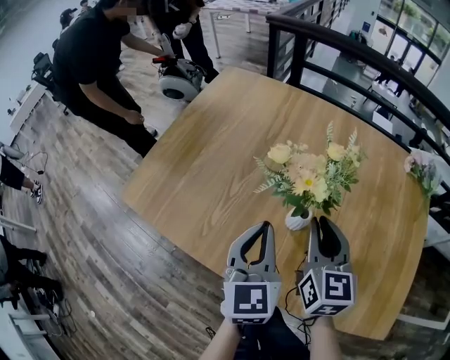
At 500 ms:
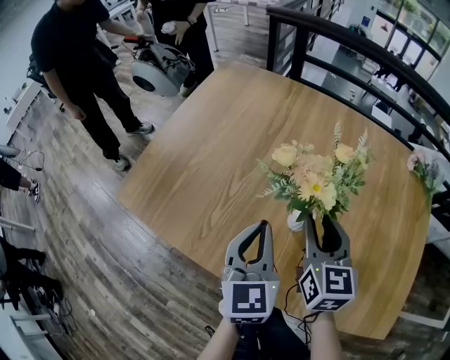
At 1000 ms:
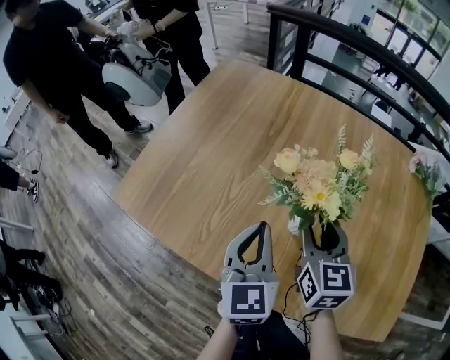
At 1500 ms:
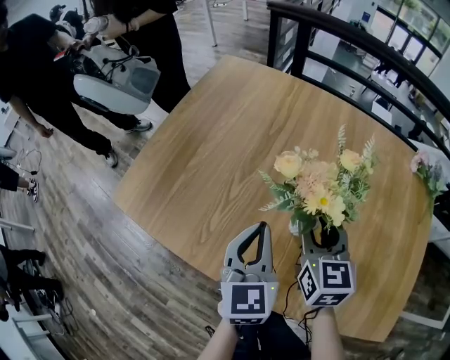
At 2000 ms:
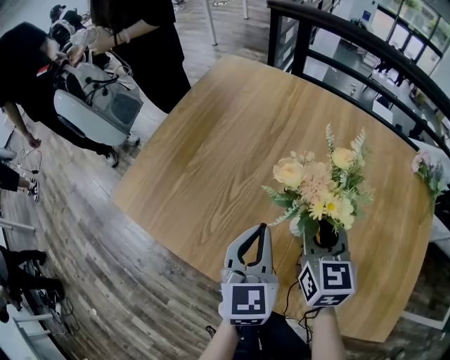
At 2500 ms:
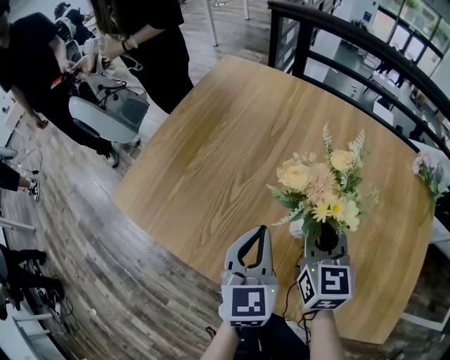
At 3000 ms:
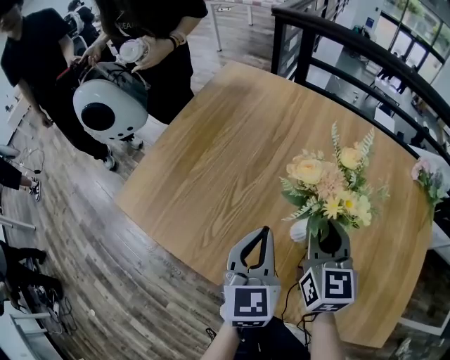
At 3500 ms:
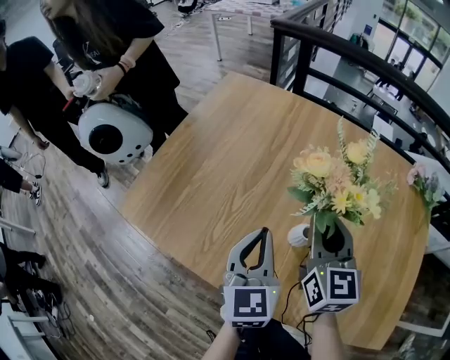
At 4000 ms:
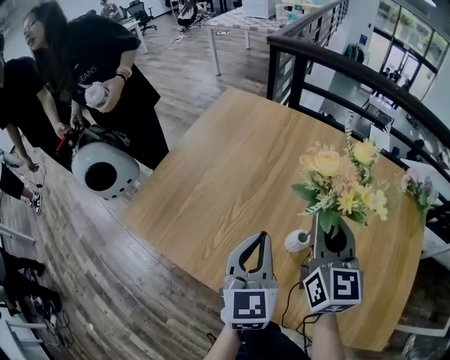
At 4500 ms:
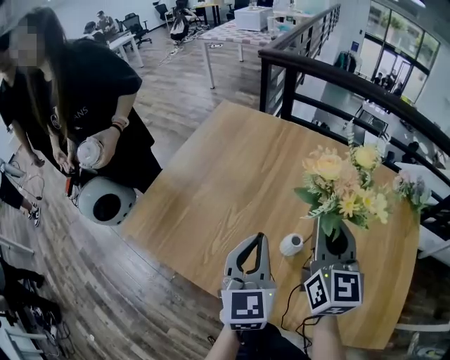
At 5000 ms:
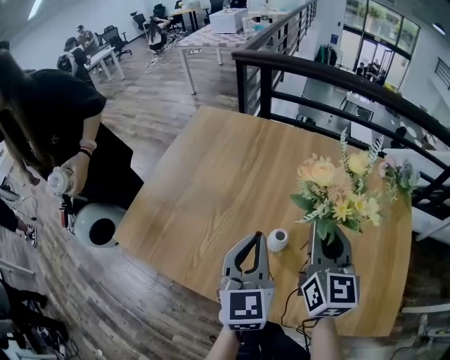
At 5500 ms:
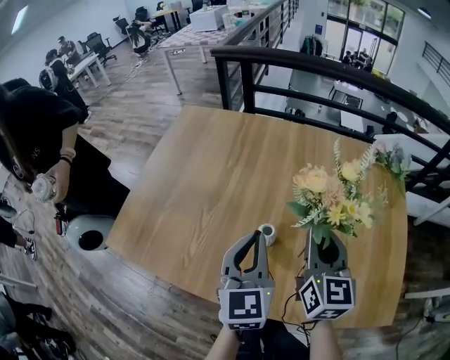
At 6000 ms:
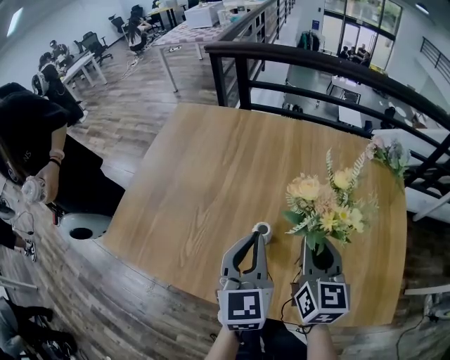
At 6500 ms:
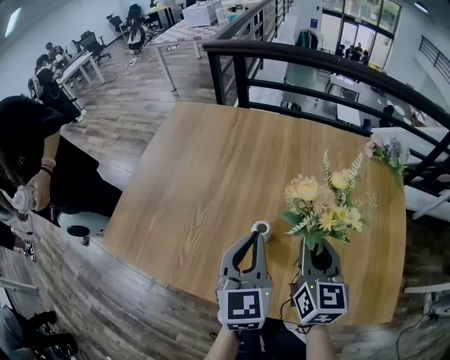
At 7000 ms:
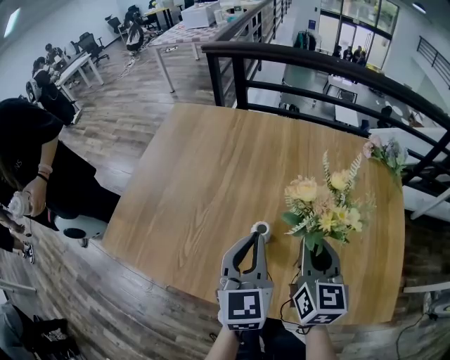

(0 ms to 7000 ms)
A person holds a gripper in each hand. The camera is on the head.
0 ms - 2000 ms: The right gripper moves roughly 5 cm.
2000 ms - 3500 ms: The right gripper heads upward, covering some 10 cm.
3500 ms - 5000 ms: The left gripper heads upward, covering about 5 cm. Meanwhile the right gripper moves to the right, roughly 5 cm.
5000 ms - 7000 ms: The right gripper heads downward, covering some 5 cm; the left gripper moves some 5 cm.

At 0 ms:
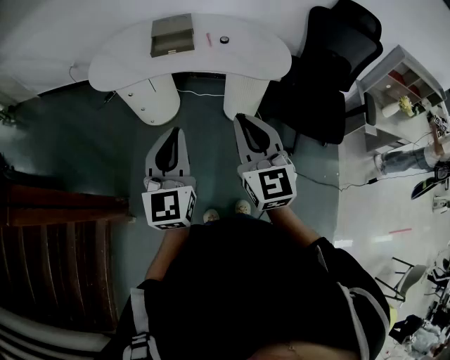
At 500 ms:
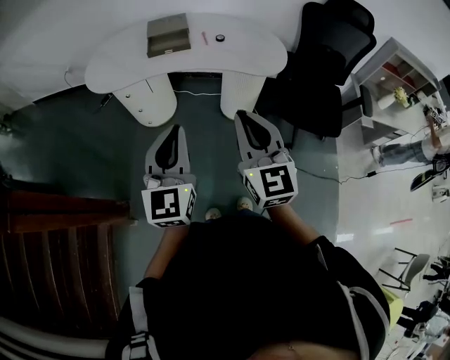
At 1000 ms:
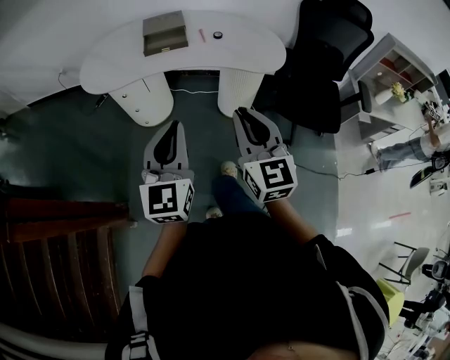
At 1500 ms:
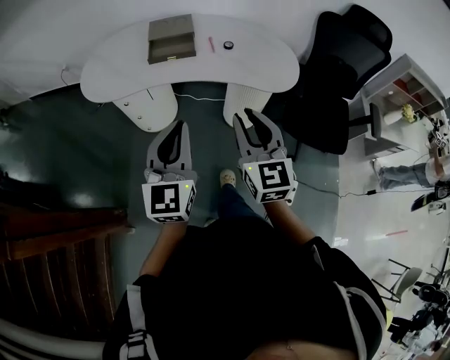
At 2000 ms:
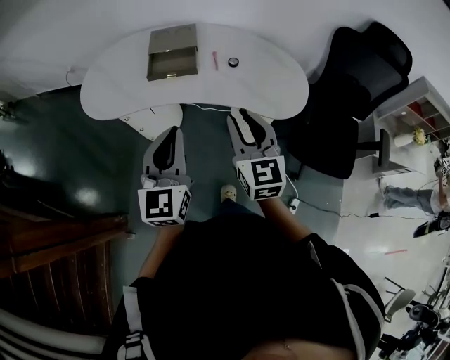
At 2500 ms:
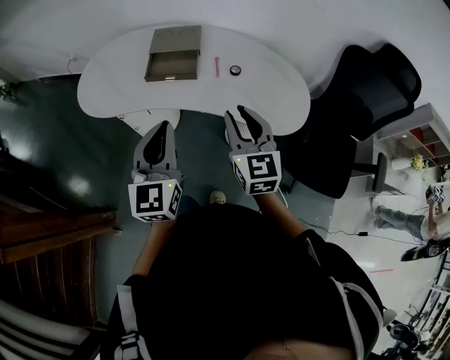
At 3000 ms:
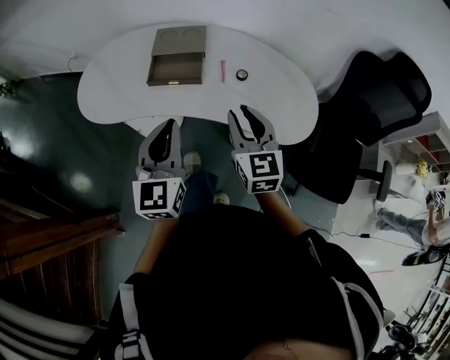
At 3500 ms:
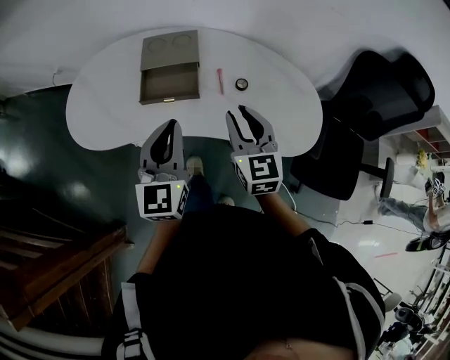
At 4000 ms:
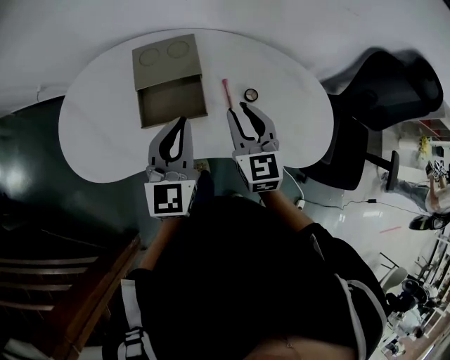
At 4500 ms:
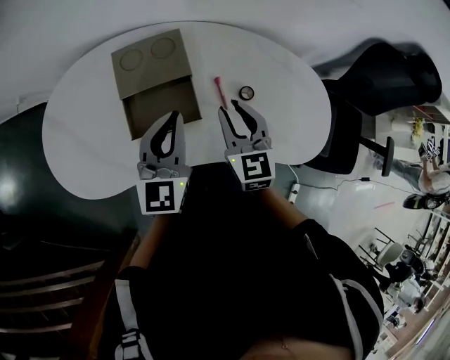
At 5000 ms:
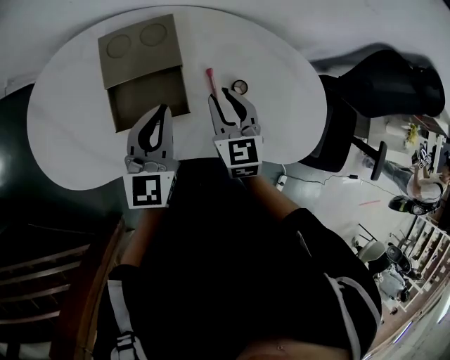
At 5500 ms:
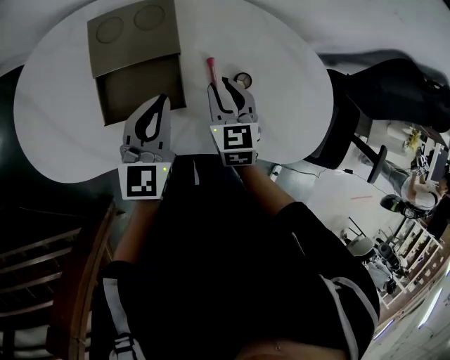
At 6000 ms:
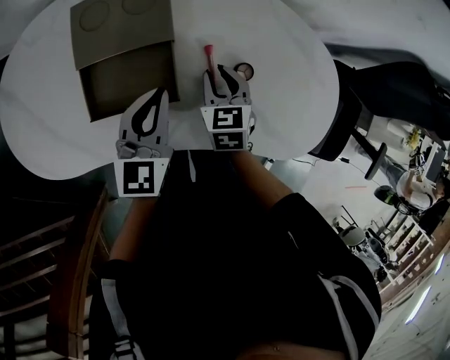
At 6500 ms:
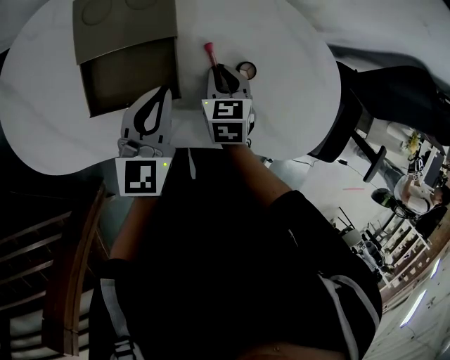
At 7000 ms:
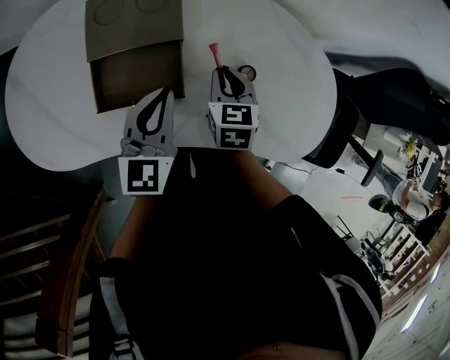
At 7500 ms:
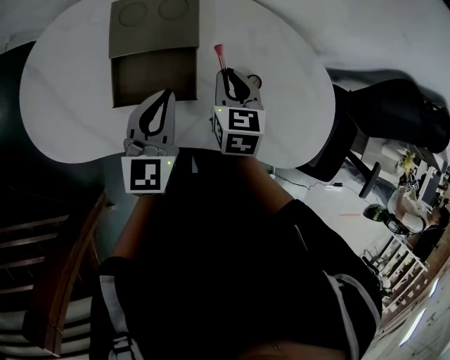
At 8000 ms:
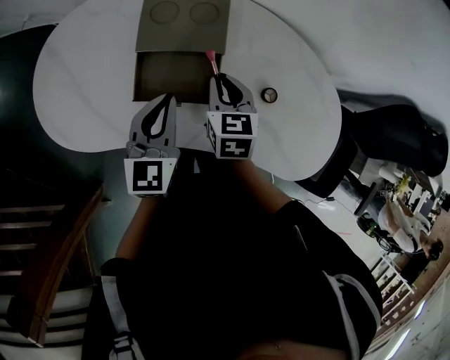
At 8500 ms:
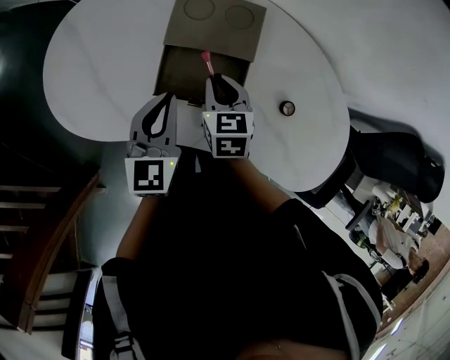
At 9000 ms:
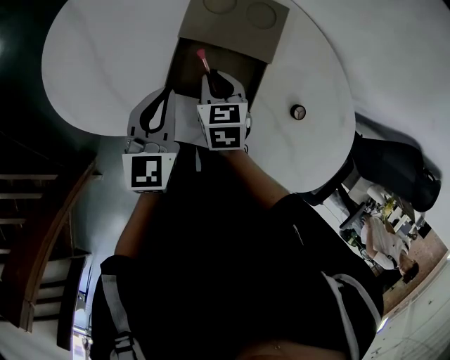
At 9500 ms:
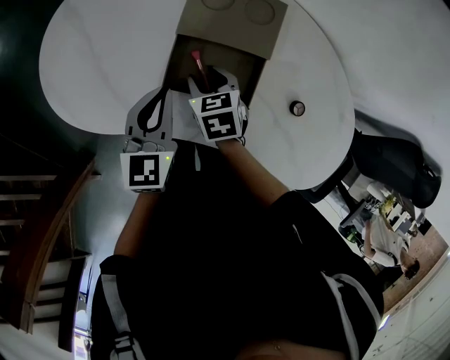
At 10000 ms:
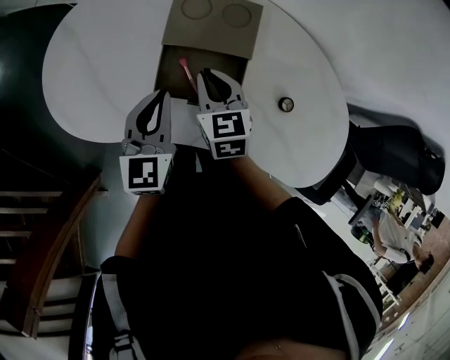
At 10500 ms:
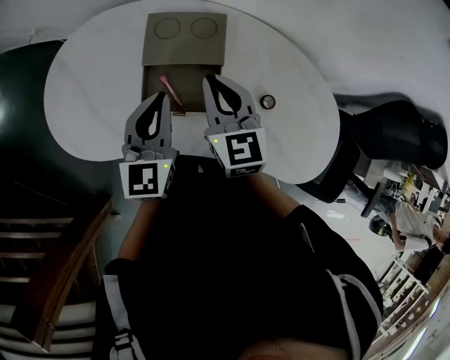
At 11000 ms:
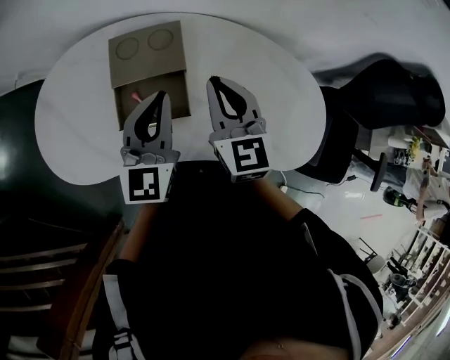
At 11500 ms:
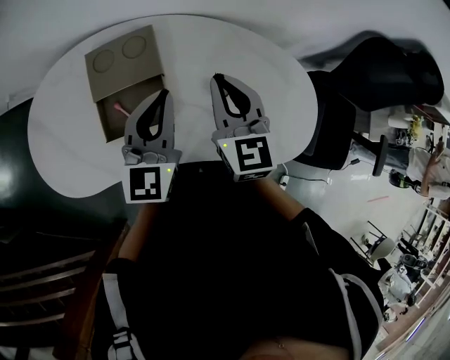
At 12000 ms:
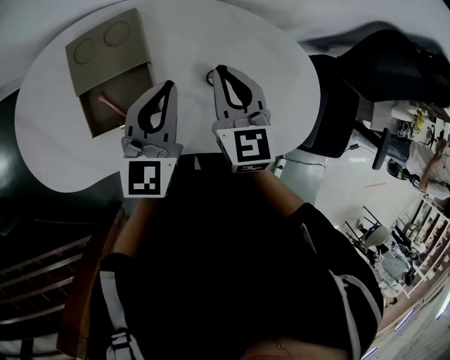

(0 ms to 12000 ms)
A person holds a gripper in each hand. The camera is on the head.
0 ms - 2000 ms: Both grippers move forward, about 25 cm. The right gripper opens up.
2000 ms - 4000 ms: The two grippers go some 30 cm forward.
4000 ms - 6000 ms: Both grippers travel together downward and forward, some 20 cm. The right gripper tips its fingers downward by about 30 degrees.
6000 ms - 8000 ms: Both grippers travel together to the left and upward, some 10 cm.
8000 ms - 10000 ms: Both grippers travel together to the left, roughly 10 cm. The right gripper opens and closes again.
10000 ms - 12000 ms: The left gripper shifts by roughly 25 cm, and turns by approximately 30 degrees; the right gripper changes place by roughly 30 cm, and turns by roughly 30 degrees.

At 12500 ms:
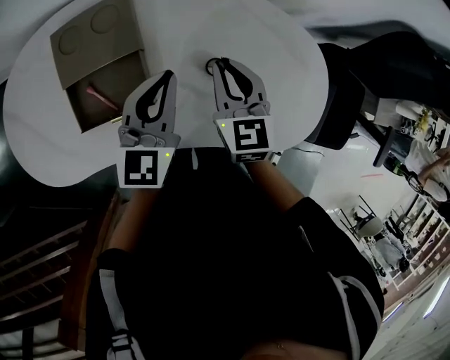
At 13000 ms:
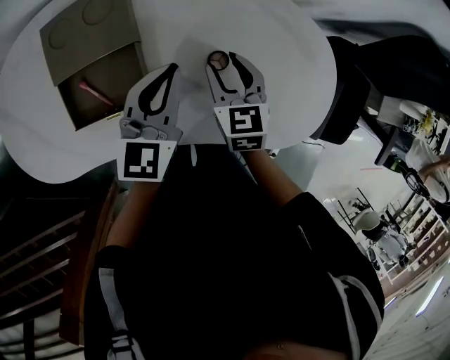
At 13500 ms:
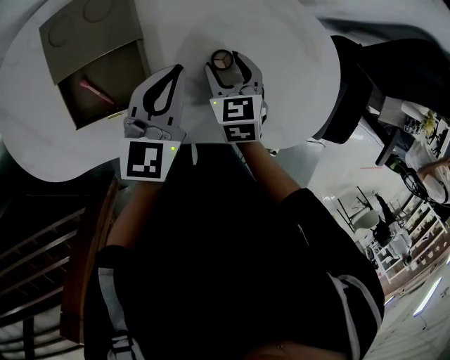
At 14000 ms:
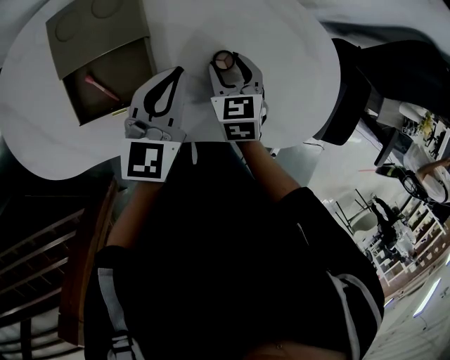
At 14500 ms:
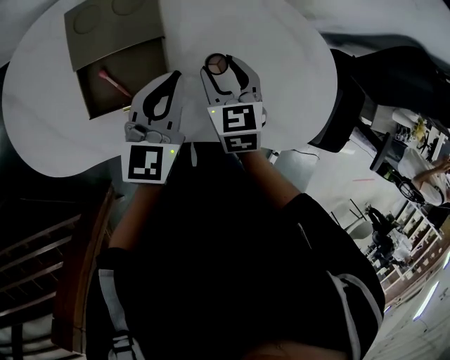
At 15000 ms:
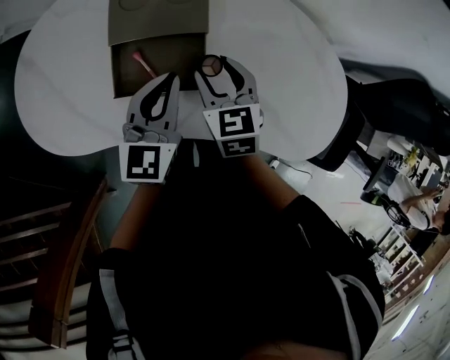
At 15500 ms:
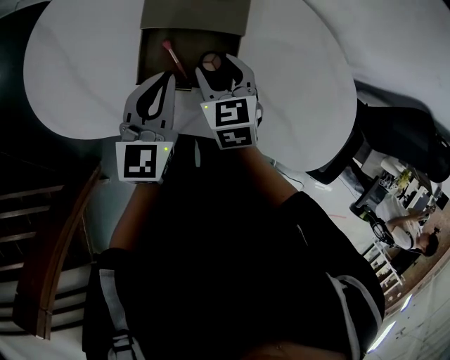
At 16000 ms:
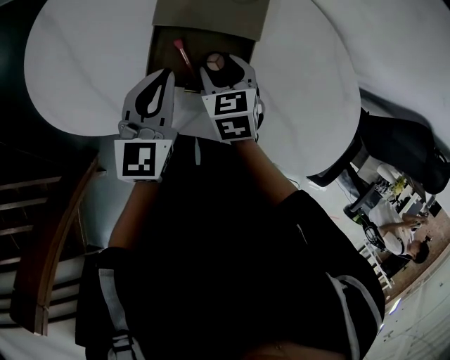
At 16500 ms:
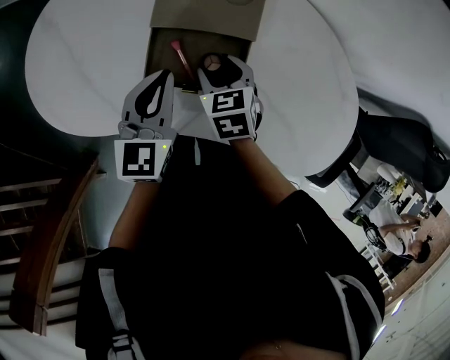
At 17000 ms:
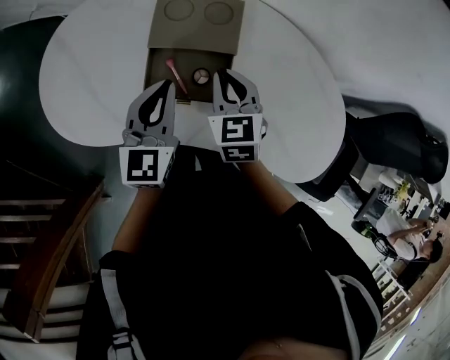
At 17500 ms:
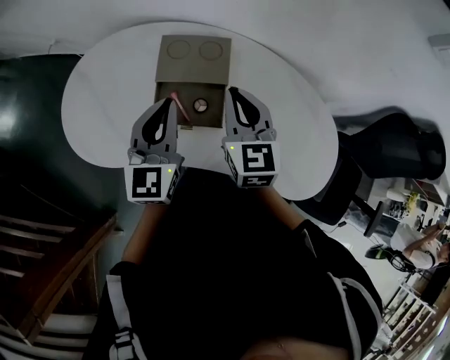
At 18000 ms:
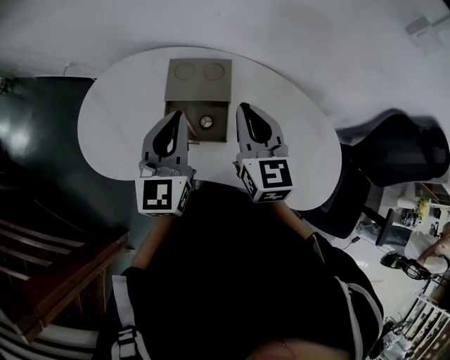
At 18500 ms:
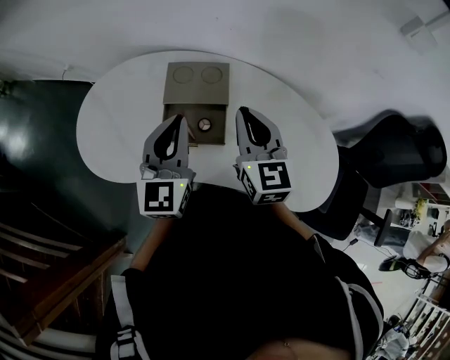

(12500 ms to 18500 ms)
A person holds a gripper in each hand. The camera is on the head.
12500 ms - 14500 ms: The left gripper moves about 5 cm. The right gripper moves to the left, roughly 5 cm, and opens its fingers.
14500 ms - 16500 ms: Both grippers move to the left, about 20 cm. The right gripper rotates approximately 20 degrees. Meanwhile the left gripper rotates roughly 20 degrees.
16500 ms - 18500 ms: Both grippers travel together upward, roughly 25 cm. The right gripper angles its fingers upward, by some 40 degrees, and closes its fingers. Meanwhile the left gripper changes its angle by about 20 degrees.

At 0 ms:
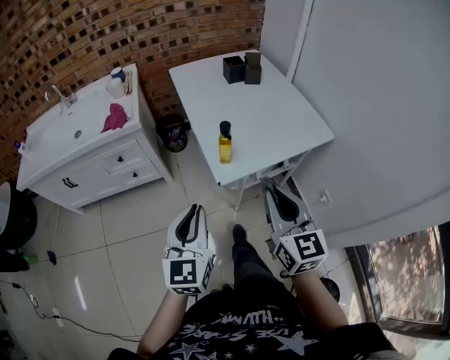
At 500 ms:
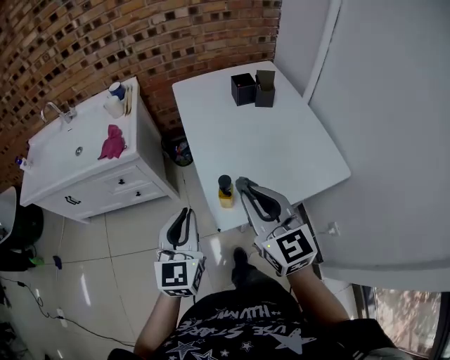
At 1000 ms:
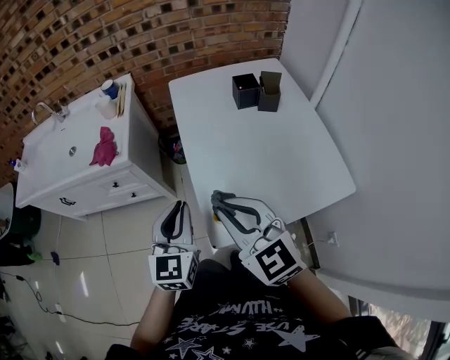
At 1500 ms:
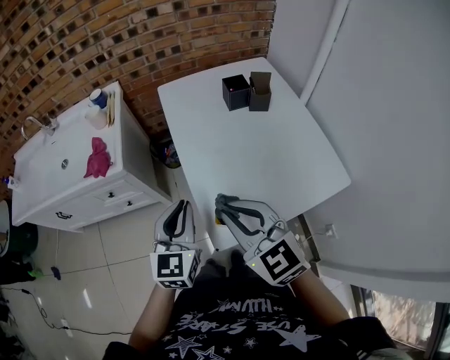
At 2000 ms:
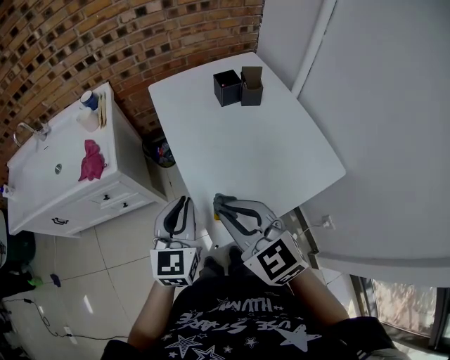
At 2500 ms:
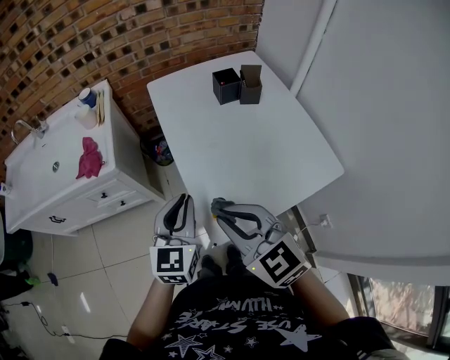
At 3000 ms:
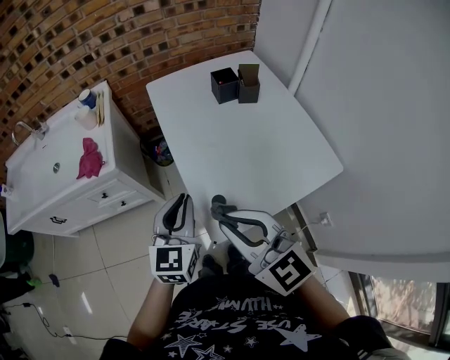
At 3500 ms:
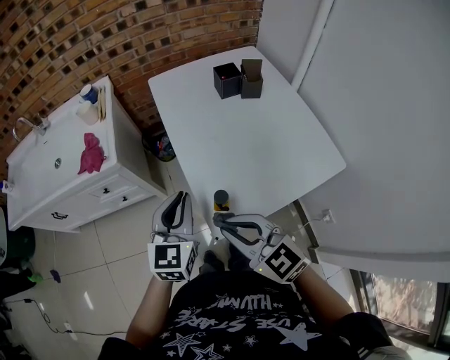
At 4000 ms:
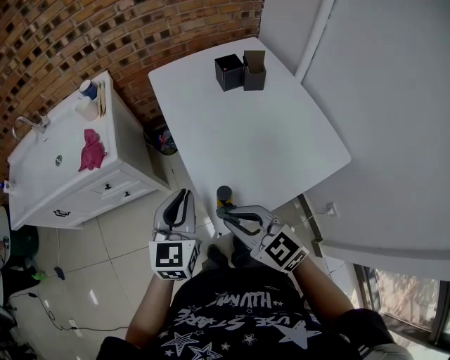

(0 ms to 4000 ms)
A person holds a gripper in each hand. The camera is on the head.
0 ms - 2000 ms: Both grippers travel together forward, roughly 20 cm. The right gripper swivels approximately 40 degrees.
2000 ms - 4000 ms: The right gripper is displaced downward by roughly 10 cm.
